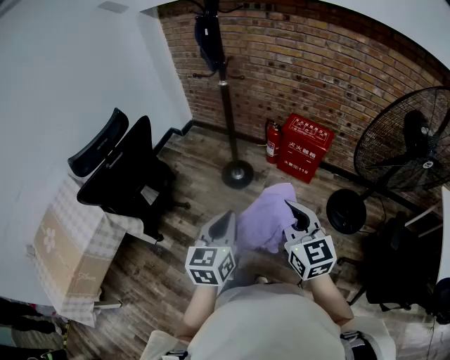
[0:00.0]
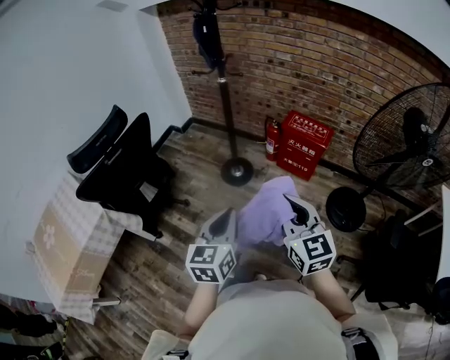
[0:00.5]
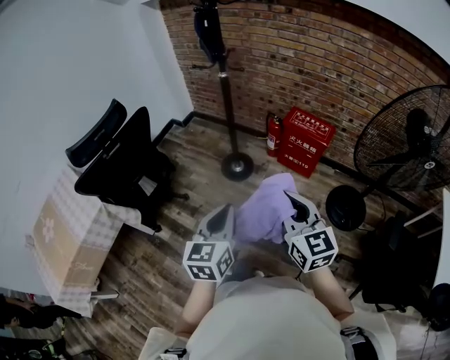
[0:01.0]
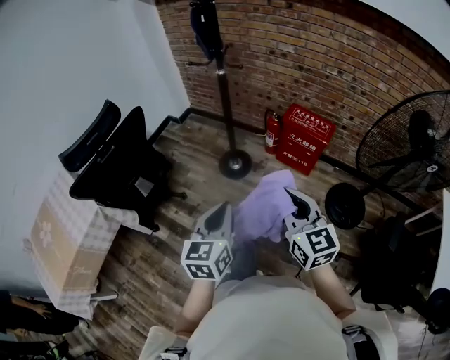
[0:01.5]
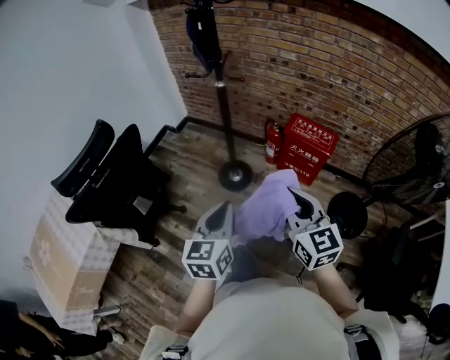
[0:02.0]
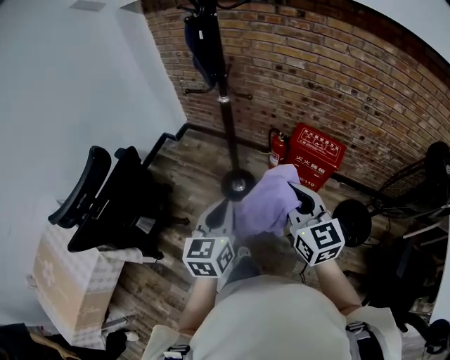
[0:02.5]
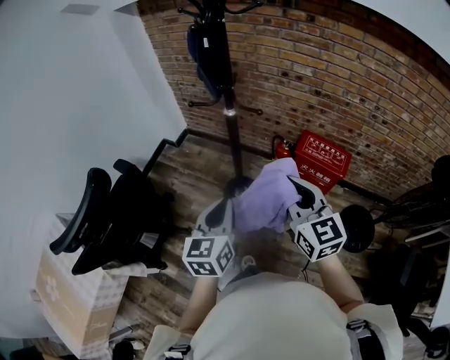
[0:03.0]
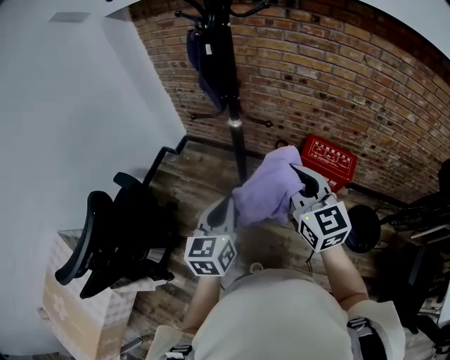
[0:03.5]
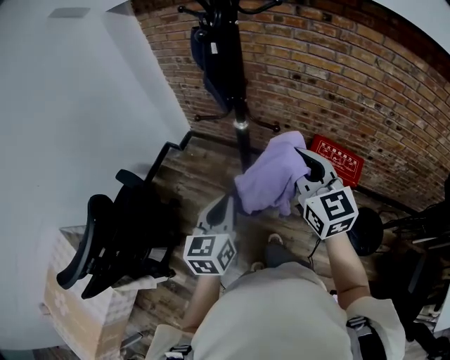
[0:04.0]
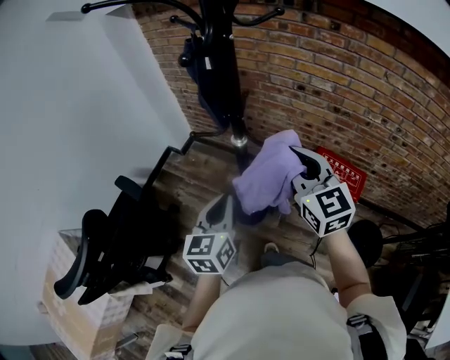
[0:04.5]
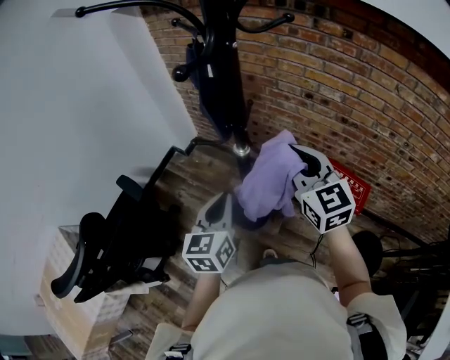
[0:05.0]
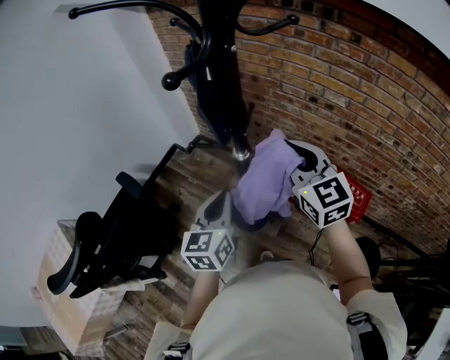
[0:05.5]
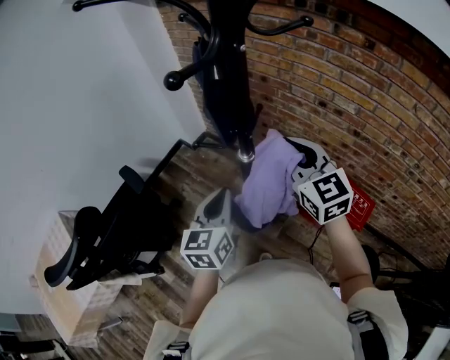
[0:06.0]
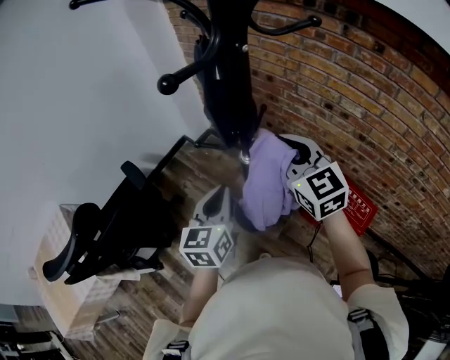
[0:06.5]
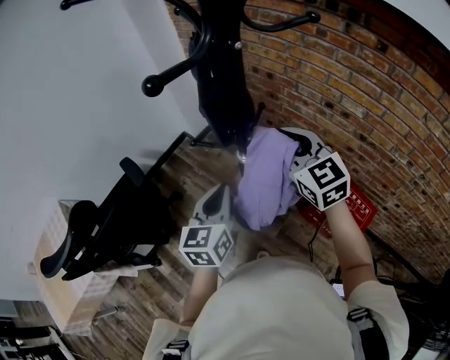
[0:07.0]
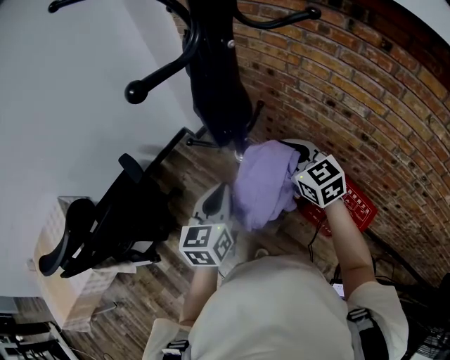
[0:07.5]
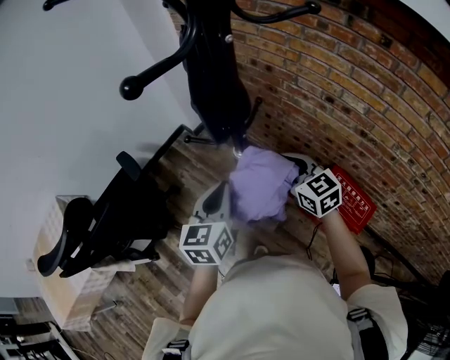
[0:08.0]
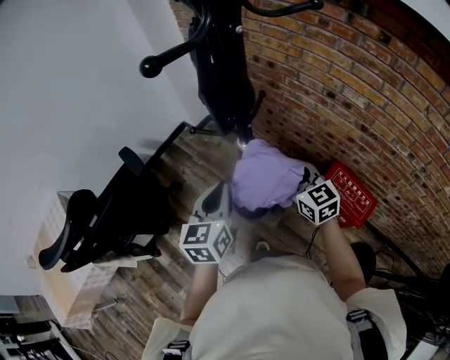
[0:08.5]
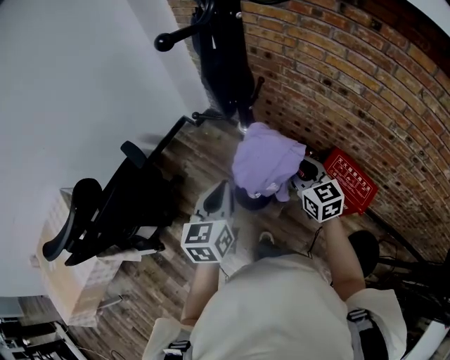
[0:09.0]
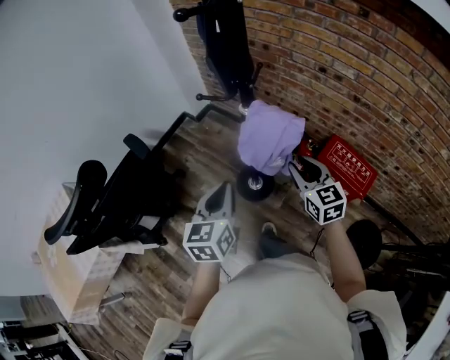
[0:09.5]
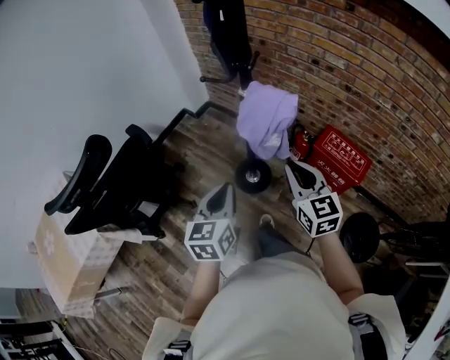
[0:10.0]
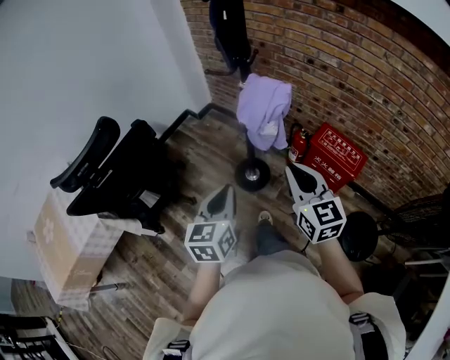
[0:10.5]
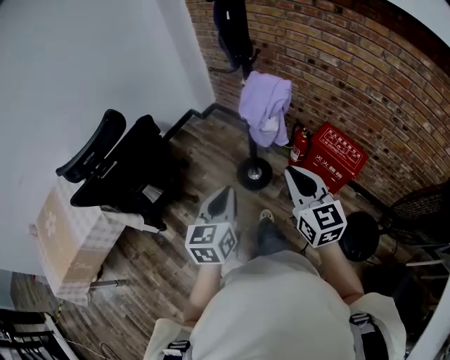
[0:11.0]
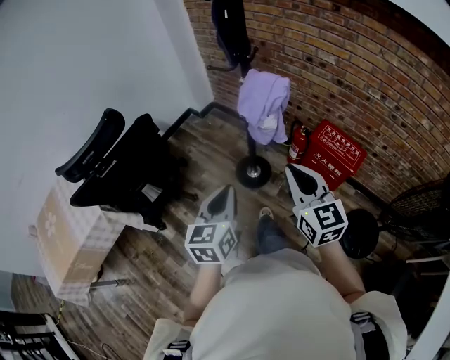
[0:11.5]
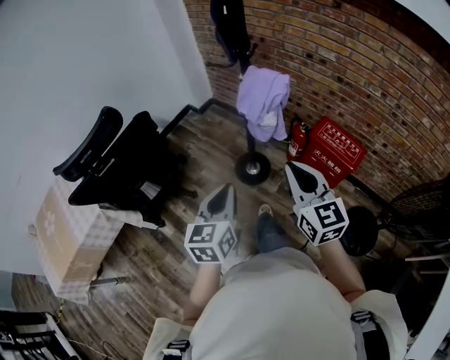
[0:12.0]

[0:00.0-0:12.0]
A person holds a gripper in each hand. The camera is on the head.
0:00.0 to 0:02.0: The two grippers go about 15 cm forward.
0:02.0 to 0:04.0: The two grippers go some 30 cm forward.
0:04.0 to 0:06.0: The two grippers go about 15 cm forward.
0:06.0 to 0:08.0: The right gripper shifts about 15 cm downward.
0:08.0 to 0:10.0: Both grippers travel together backward, some 25 cm.
0:10.0 to 0:12.0: The right gripper goes about 15 cm backward and upward. The left gripper heads backward, covering roughly 10 cm.

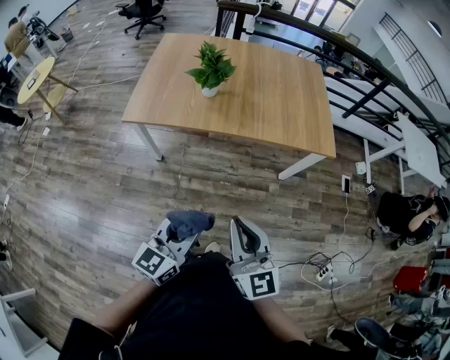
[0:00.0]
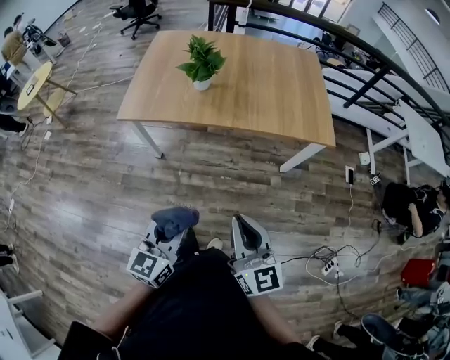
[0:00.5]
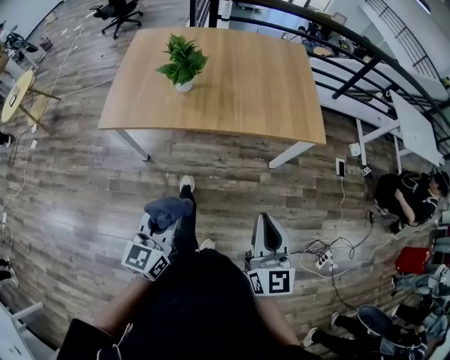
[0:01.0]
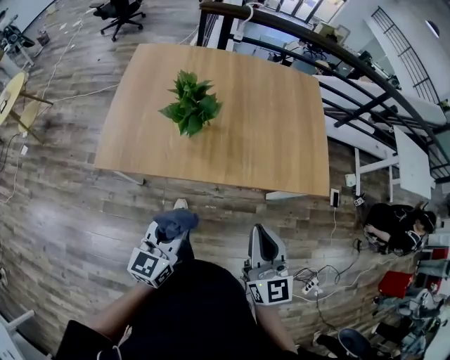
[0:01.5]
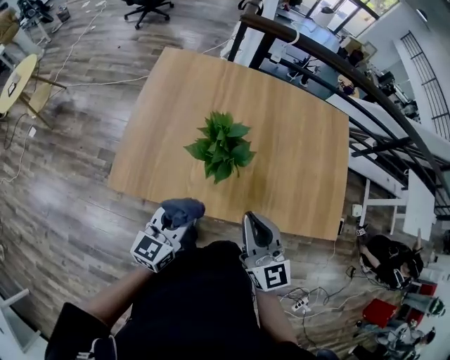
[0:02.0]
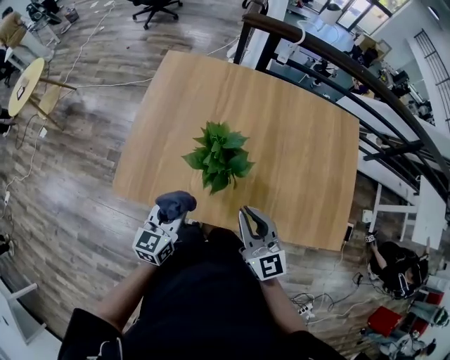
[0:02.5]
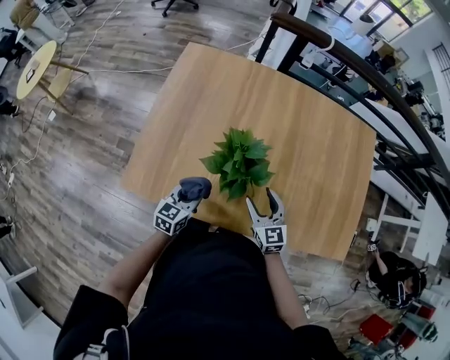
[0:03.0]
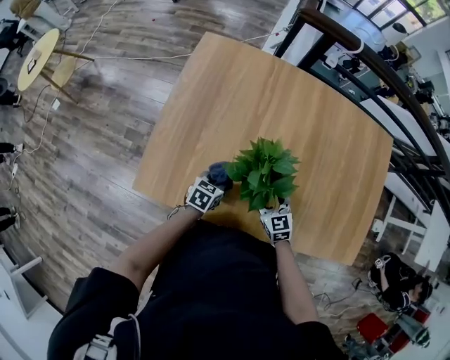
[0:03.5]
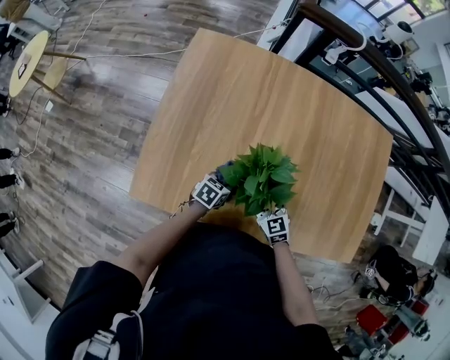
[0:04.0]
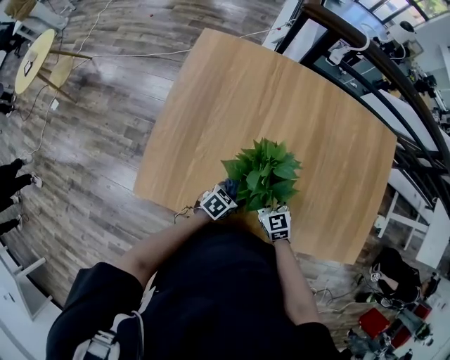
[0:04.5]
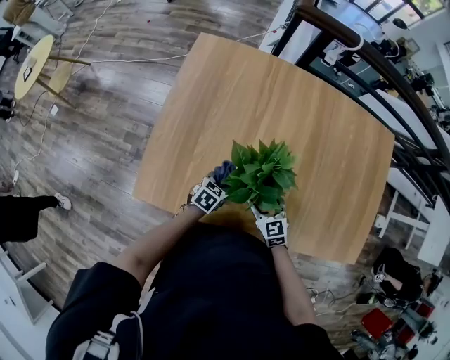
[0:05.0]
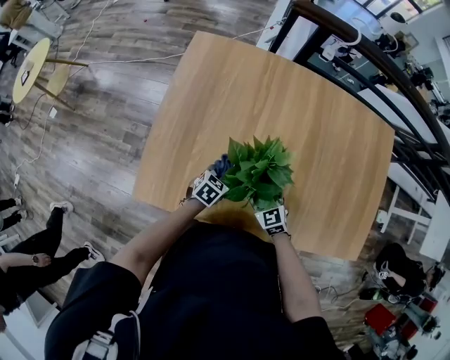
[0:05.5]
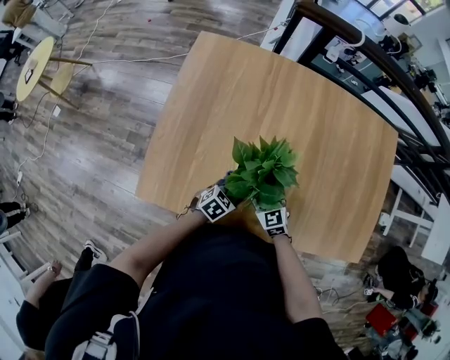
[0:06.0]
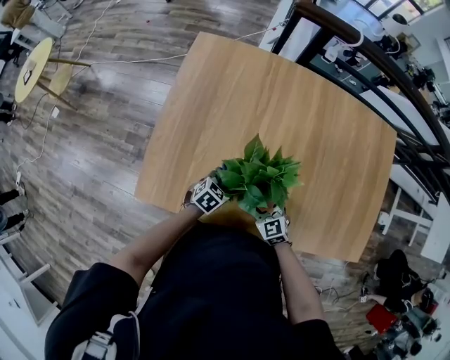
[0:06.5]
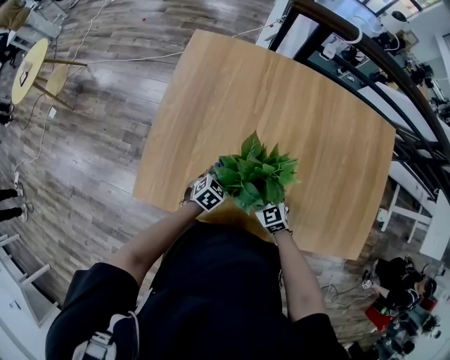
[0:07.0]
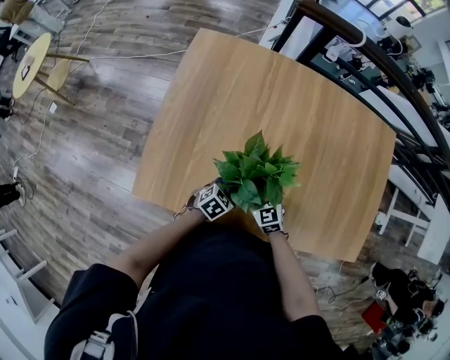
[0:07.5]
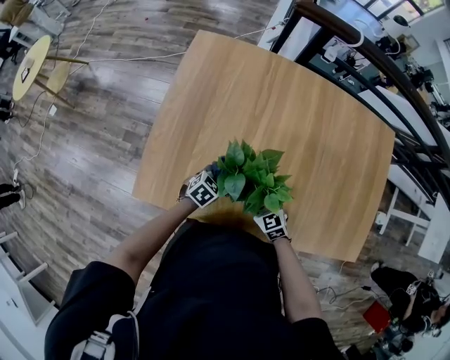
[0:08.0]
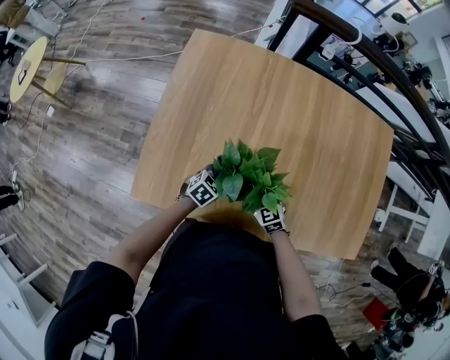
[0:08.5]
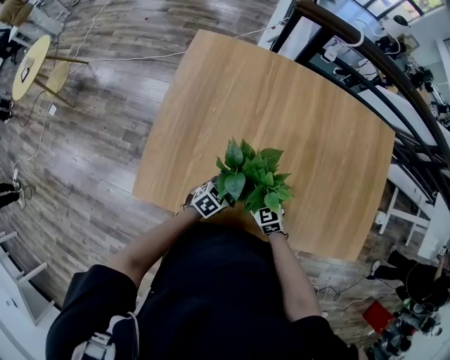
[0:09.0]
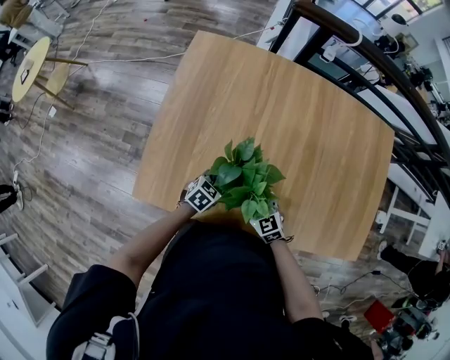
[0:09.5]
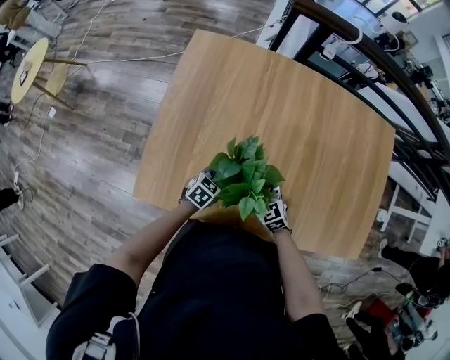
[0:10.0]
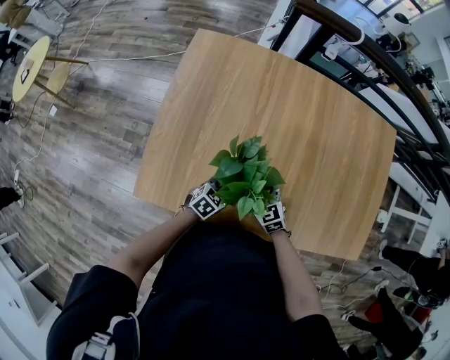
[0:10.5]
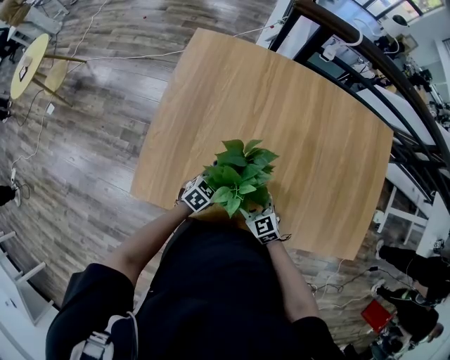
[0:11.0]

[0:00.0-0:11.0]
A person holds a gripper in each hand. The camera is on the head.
0:00.0 to 0:02.0: Both grippers are carried forward, about 40 cm.
0:02.0 to 0:03.5: The two grippers go about 30 cm downward and forward. The right gripper points its fingers some 30 degrees further downward, and opens its fingers; the left gripper tilts its fingers approximately 30 degrees downward.
0:05.5 to 0:07.5: The left gripper goes forward and backward, approximately 5 cm each way, reversing 2 times.
0:09.0 to 0:11.0: The right gripper moves forward and backward over about 5 cm, changing direction 2 times.

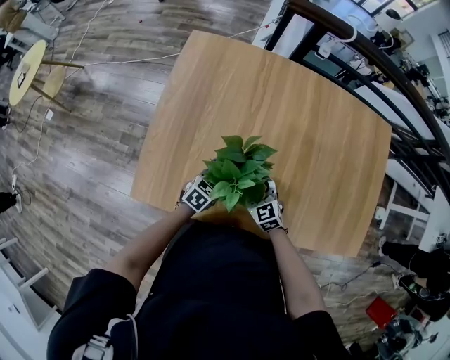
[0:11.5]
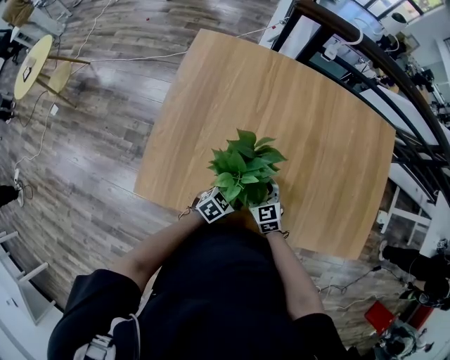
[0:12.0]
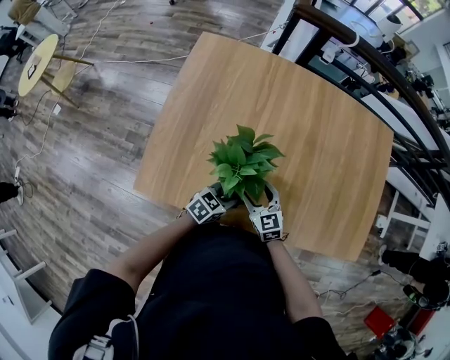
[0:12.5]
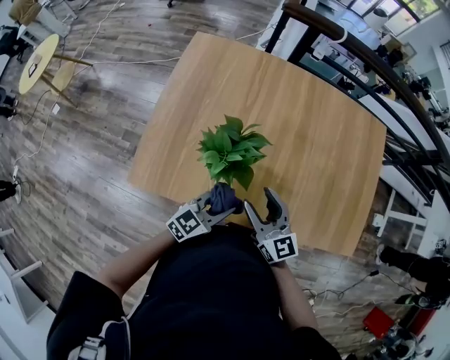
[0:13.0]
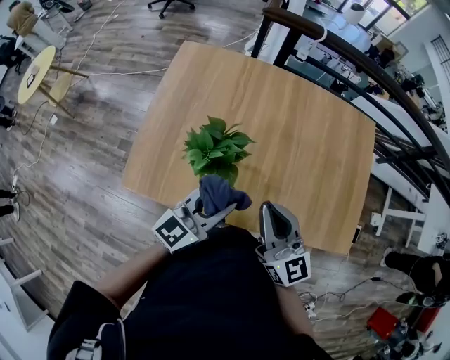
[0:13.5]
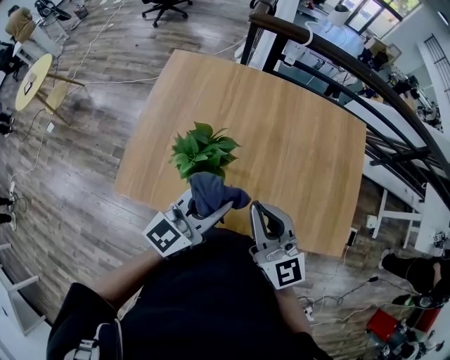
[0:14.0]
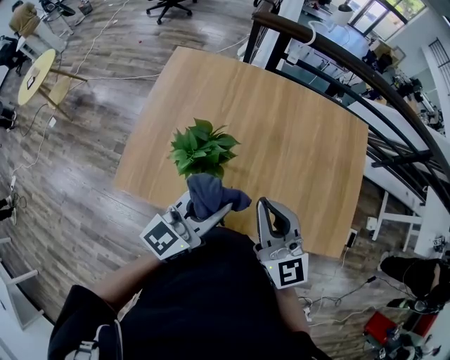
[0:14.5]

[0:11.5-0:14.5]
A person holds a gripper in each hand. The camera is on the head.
0:11.5 to 0:13.0: The right gripper heads upward, covering about 20 cm, and swivels roughly 30 degrees. Meanwhile the left gripper is displaced upward, backward and to the right by roughly 20 cm, and rotates approximately 30 degrees.
0:13.0 to 0:14.5: The right gripper shifts some 20 cm upward and to the right, and closes up, while the left gripper shifts roughly 20 cm upward, and rotates approximately 20 degrees.

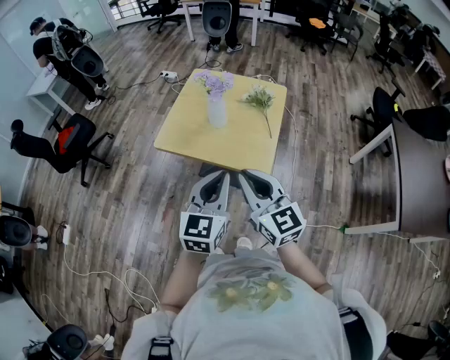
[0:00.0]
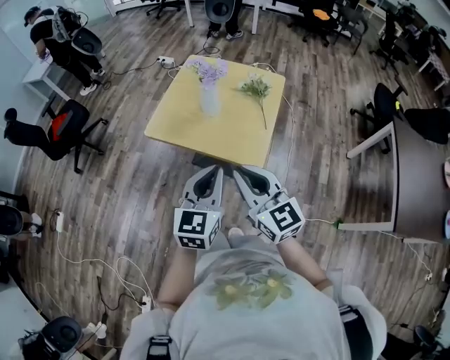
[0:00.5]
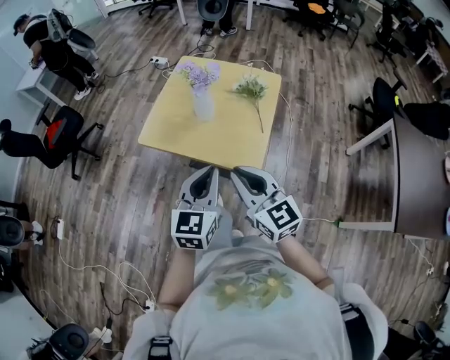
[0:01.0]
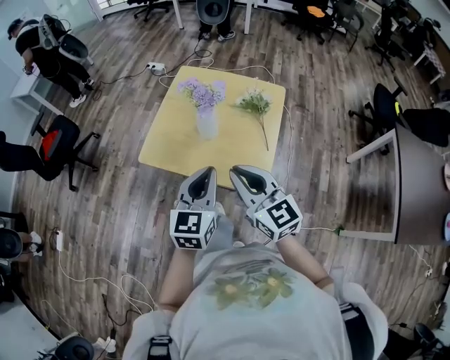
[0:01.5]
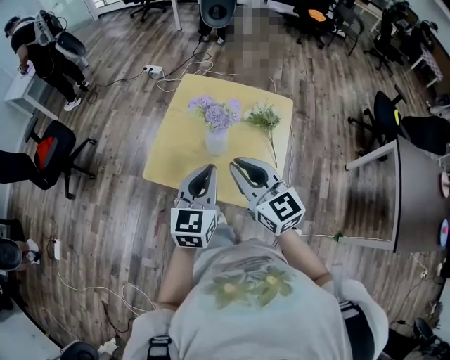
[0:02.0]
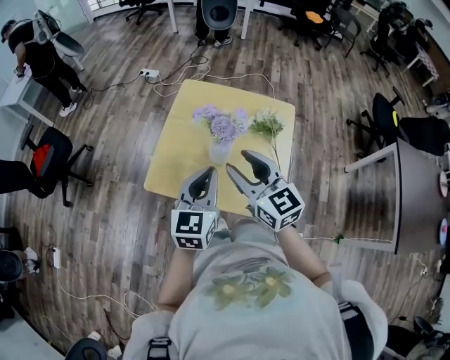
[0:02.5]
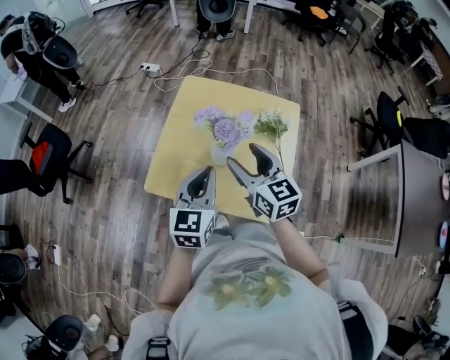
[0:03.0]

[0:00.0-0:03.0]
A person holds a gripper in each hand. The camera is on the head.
0:00.0 to 0:01.5: Both grippers move forward, about 20 cm.
0:01.5 to 0:03.0: Both grippers move forward, some 25 cm. The right gripper opens its fingers.
